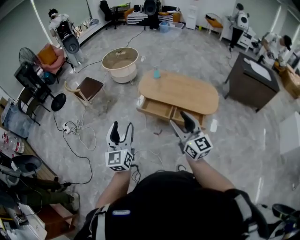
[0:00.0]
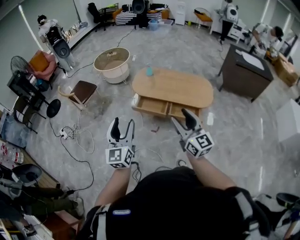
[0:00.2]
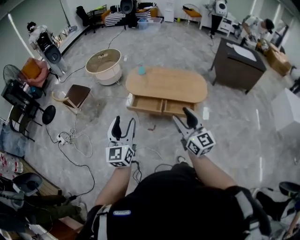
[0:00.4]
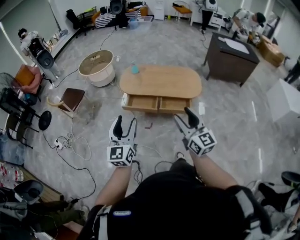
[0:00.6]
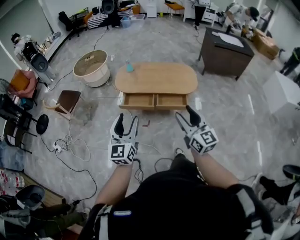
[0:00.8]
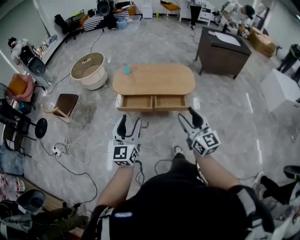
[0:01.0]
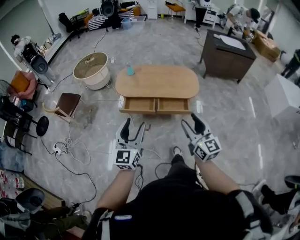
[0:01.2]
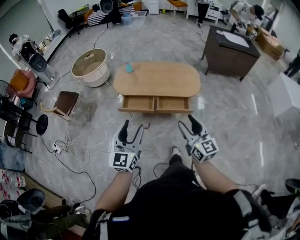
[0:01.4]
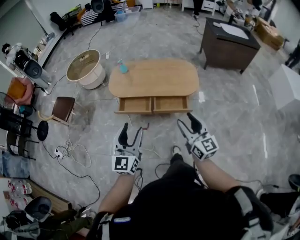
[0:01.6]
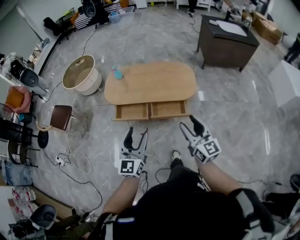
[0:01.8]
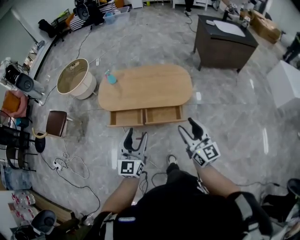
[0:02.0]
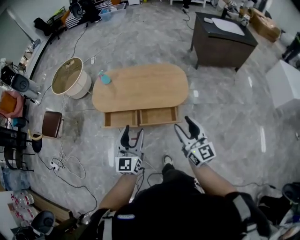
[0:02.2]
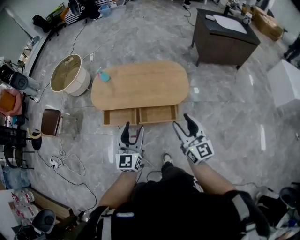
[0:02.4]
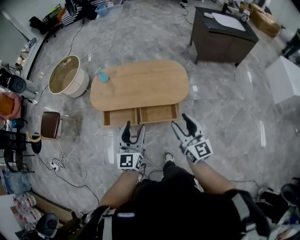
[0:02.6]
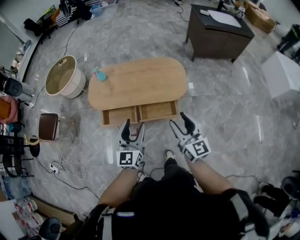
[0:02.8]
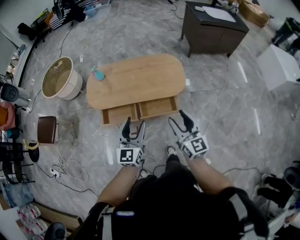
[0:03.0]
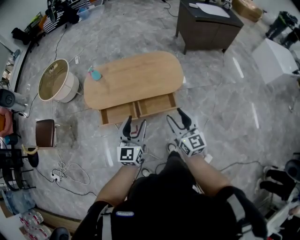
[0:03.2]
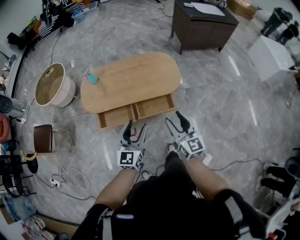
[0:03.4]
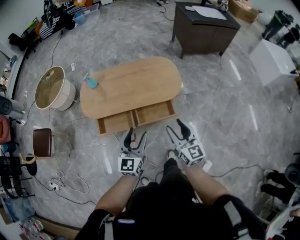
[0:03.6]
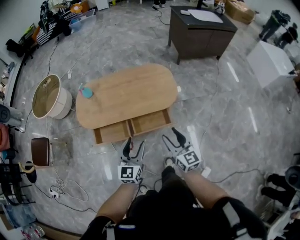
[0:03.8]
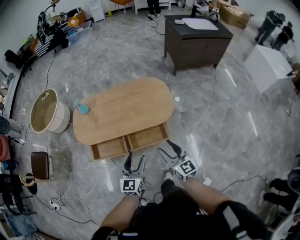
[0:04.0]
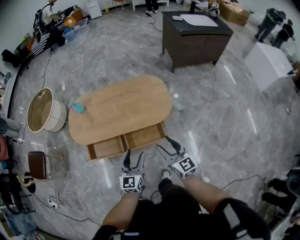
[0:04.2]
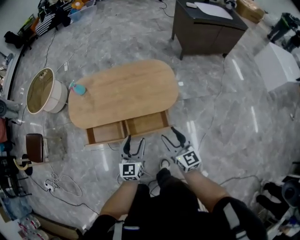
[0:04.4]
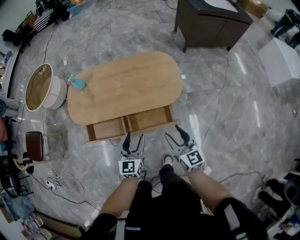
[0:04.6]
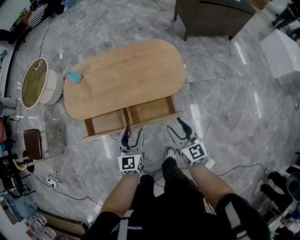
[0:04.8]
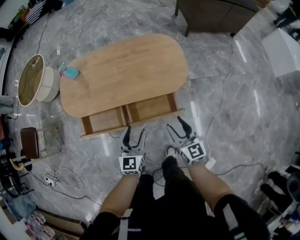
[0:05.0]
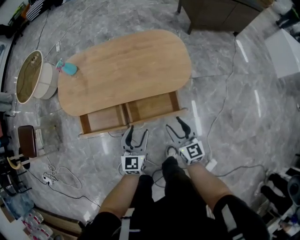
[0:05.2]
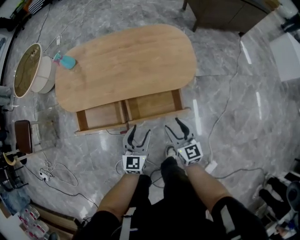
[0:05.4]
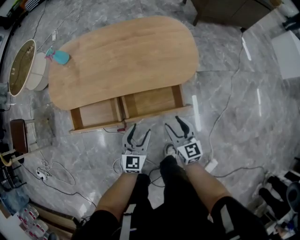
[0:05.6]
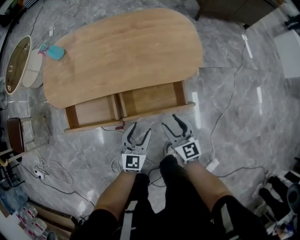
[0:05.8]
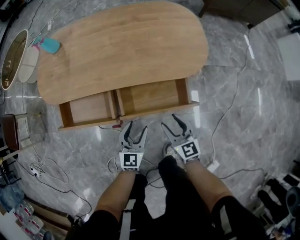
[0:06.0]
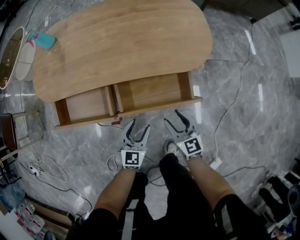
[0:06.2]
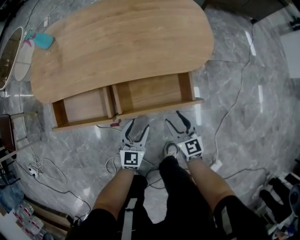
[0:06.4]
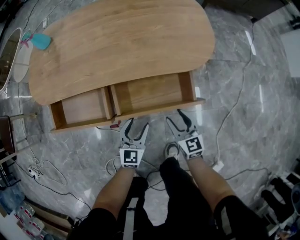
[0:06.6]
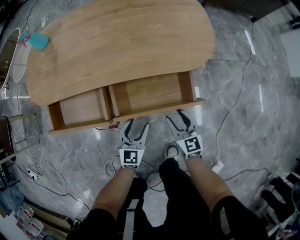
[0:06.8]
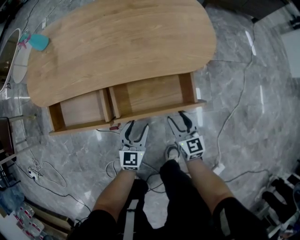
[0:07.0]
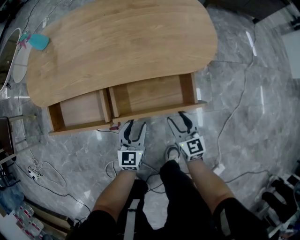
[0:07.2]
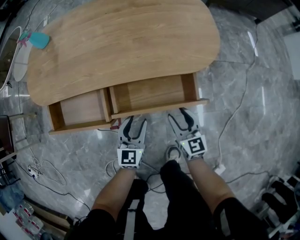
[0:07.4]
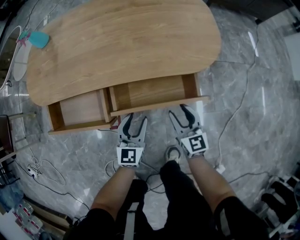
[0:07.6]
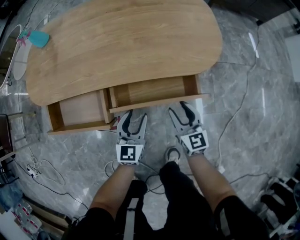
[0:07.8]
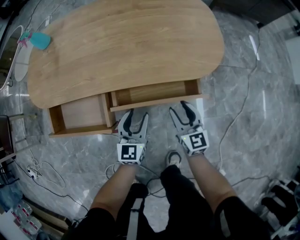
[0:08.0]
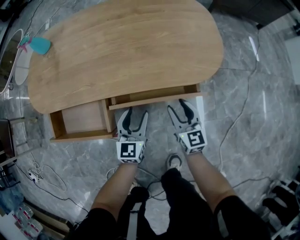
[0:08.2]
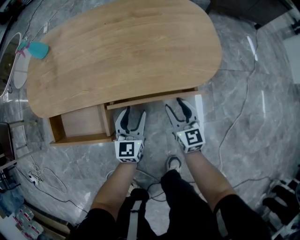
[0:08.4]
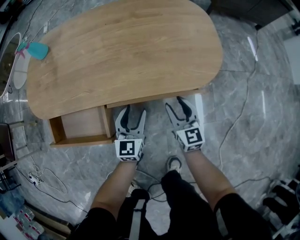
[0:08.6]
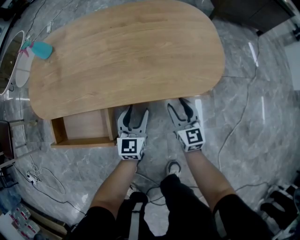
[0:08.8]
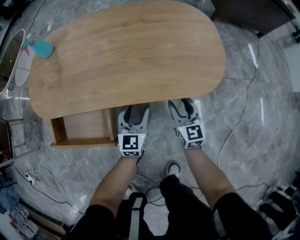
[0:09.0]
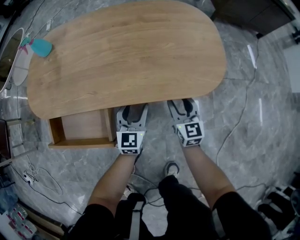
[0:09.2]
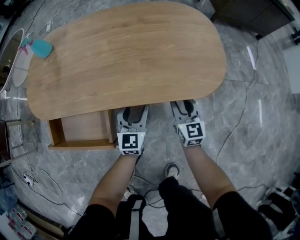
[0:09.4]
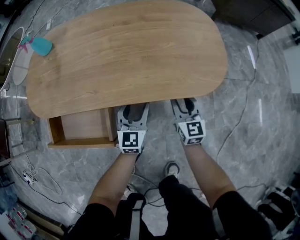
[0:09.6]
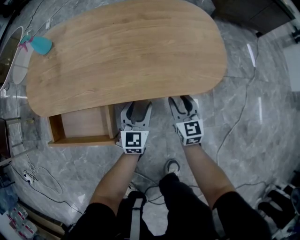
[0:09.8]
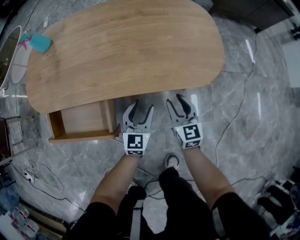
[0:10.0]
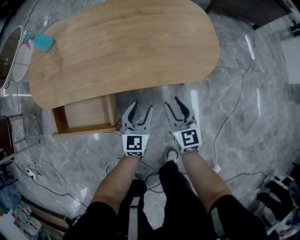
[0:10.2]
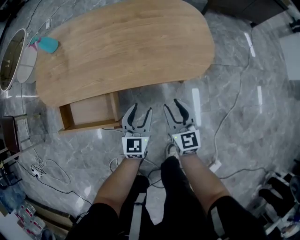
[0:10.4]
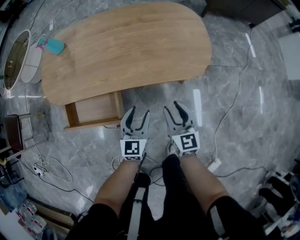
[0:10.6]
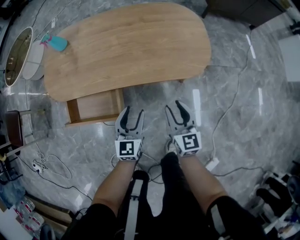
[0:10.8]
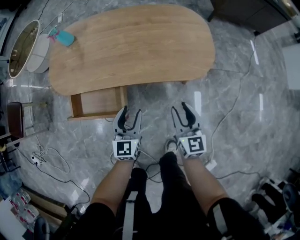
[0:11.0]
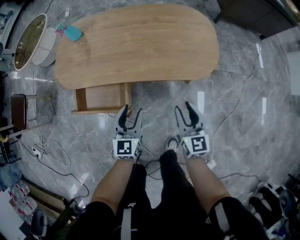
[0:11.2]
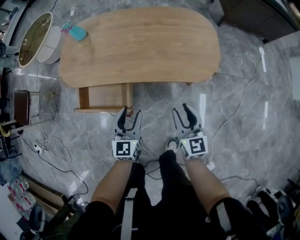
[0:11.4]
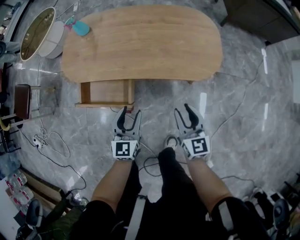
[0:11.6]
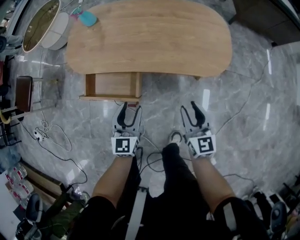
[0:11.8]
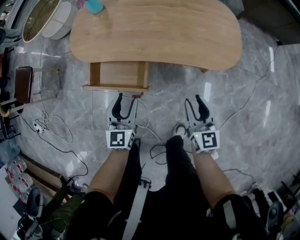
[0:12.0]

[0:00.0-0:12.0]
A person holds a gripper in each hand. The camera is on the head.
0:00.0 to 0:01.6: The right gripper goes some 20 cm to the right and downward, and turns by approximately 20 degrees. Meanwhile the left gripper is displaced to the right and forward by roughly 20 cm, and swivels some 30 degrees.
0:01.6 to 0:03.0: The left gripper moves forward, to the right and downward, roughly 20 cm, while the right gripper travels forward and downward by approximately 15 cm.
0:03.0 to 0:04.4: The left gripper is displaced downward, to the right and forward by about 20 cm; the right gripper travels downward and forward by some 15 cm.
0:04.4 to 0:06.0: Both grippers travel together downward, about 35 cm.
0:06.0 to 0:07.6: The left gripper is displaced downward by approximately 5 cm. Meanwhile the right gripper is displaced downward and forward by approximately 10 cm.
0:07.6 to 0:09.0: Both grippers travel together forward, roughly 15 cm.
0:09.0 to 0:10.4: The right gripper is displaced upward and backward by approximately 15 cm; the left gripper heads backward and upward, covering some 10 cm.
0:10.4 to 0:12.0: The left gripper heads to the left and upward, covering some 20 cm. Meanwhile the right gripper goes some 10 cm upward and backward.

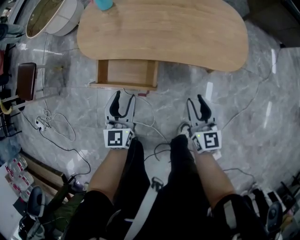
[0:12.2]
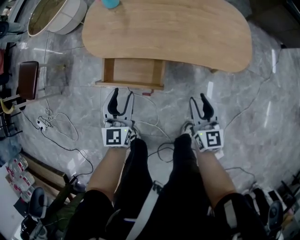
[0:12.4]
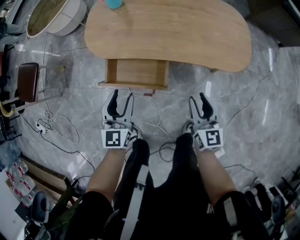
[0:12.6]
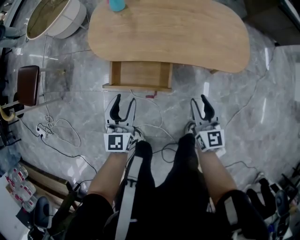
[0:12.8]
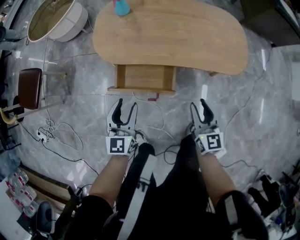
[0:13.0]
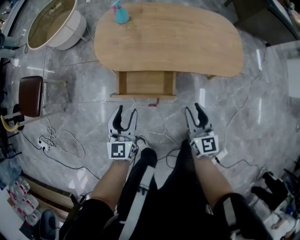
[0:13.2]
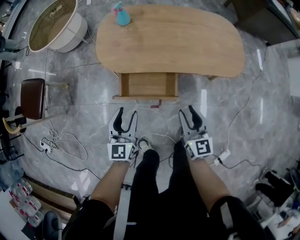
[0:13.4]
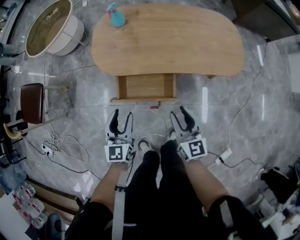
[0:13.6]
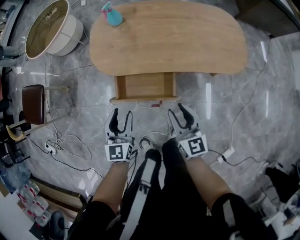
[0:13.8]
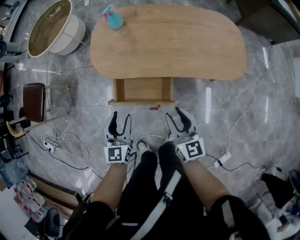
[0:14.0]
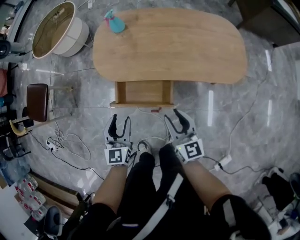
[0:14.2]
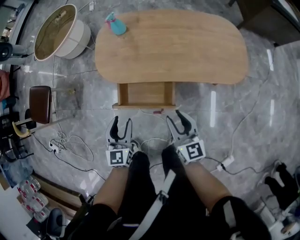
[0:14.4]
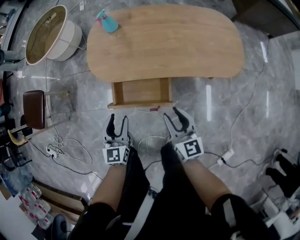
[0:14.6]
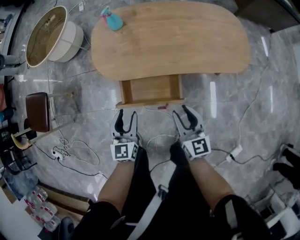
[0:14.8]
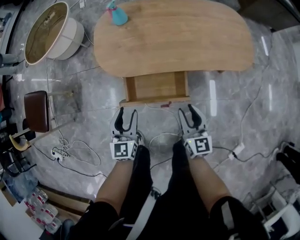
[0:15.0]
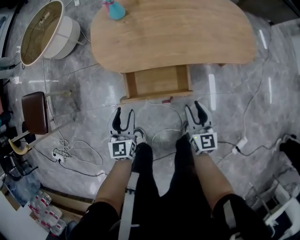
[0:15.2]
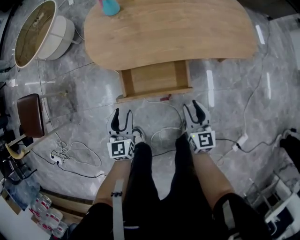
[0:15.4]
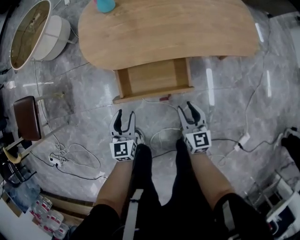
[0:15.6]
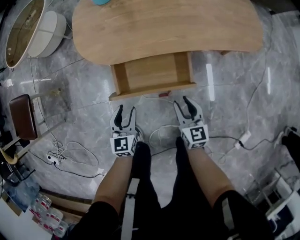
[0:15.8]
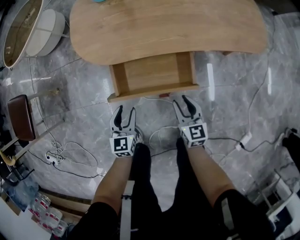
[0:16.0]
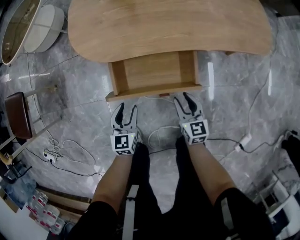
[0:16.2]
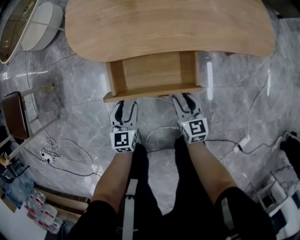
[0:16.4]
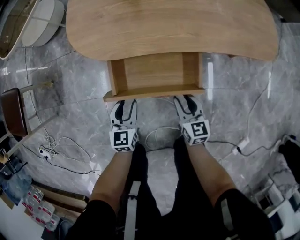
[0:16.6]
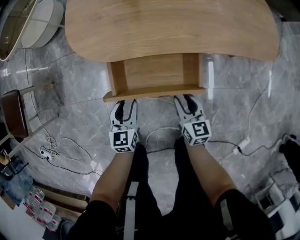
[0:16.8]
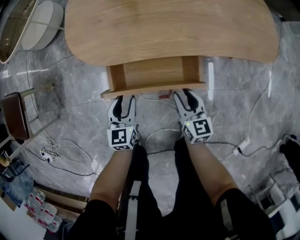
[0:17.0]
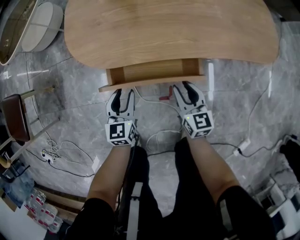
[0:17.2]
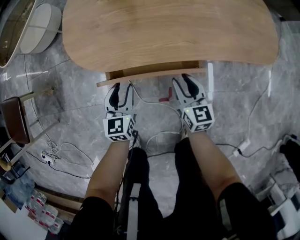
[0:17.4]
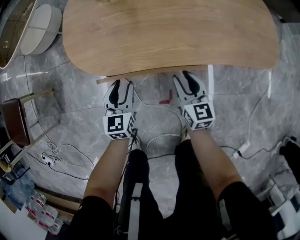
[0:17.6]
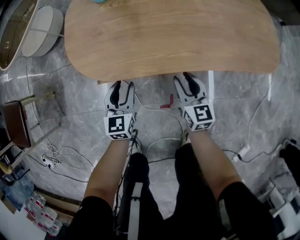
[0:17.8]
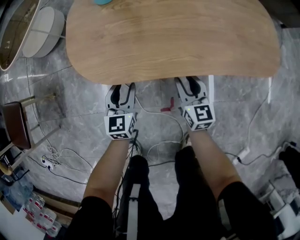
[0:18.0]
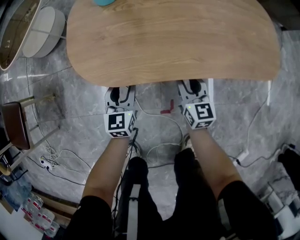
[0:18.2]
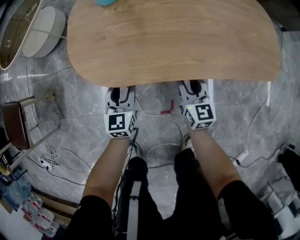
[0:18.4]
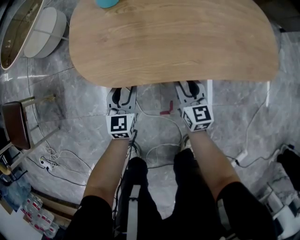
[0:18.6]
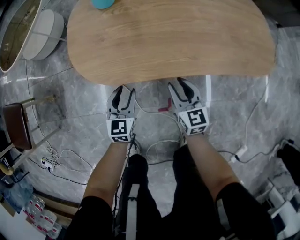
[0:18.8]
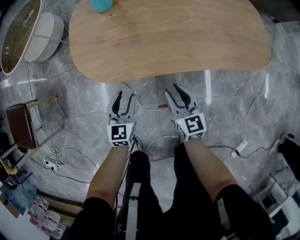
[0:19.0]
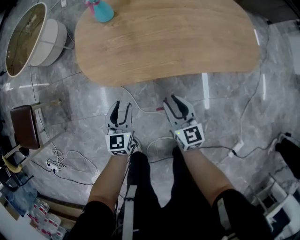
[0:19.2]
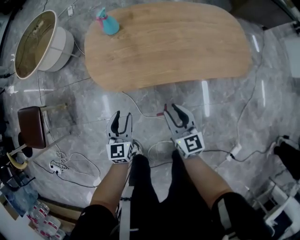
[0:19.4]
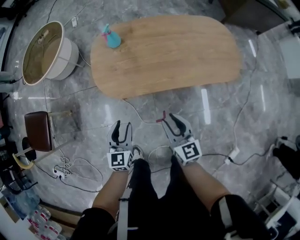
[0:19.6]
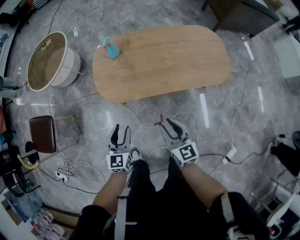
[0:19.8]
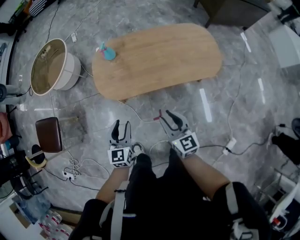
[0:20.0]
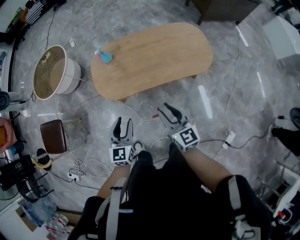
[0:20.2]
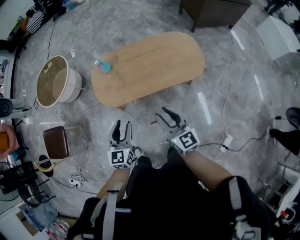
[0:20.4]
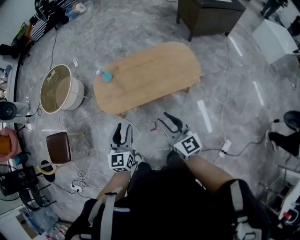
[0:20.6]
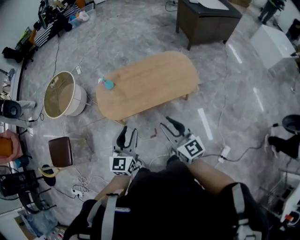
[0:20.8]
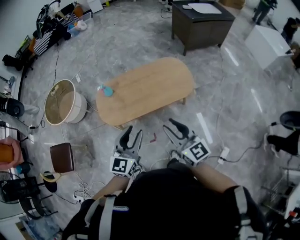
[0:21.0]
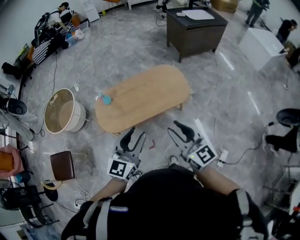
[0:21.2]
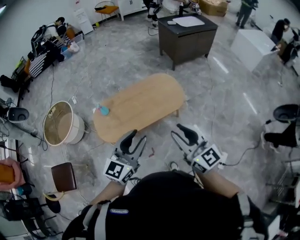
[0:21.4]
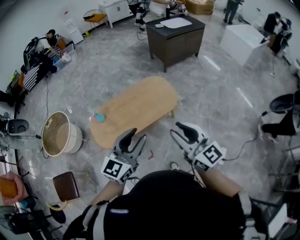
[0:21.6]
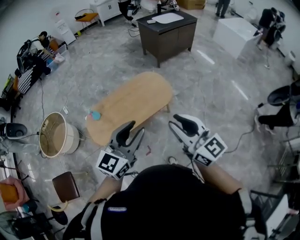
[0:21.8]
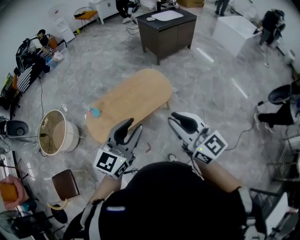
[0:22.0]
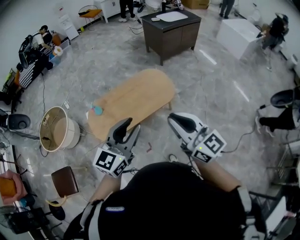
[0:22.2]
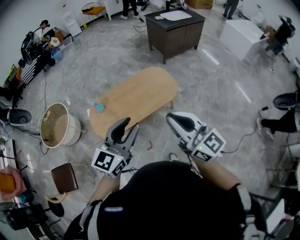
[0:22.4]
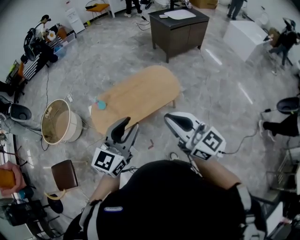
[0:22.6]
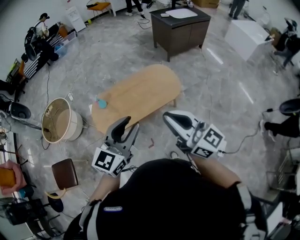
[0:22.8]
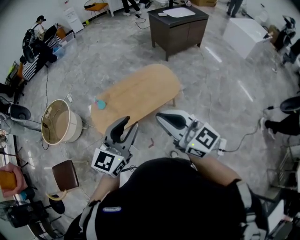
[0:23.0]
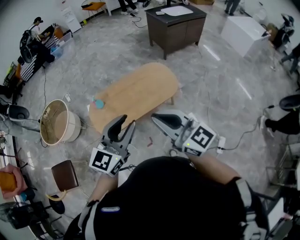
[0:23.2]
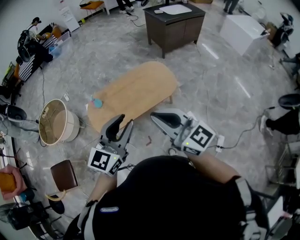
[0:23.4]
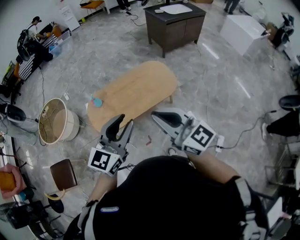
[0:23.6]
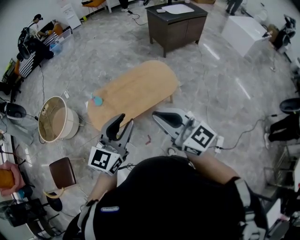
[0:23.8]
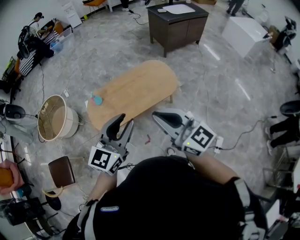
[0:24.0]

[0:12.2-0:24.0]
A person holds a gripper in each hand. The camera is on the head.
0:12.2 to 0:13.6: The two grippers go some 15 cm to the left.
0:13.6 to 0:15.2: The left gripper travels downward and to the left by some 10 cm. The right gripper travels downward by some 10 cm.
0:15.2 to 0:16.6: Both grippers travel together downward, roughly 20 cm.
0:16.6 to 0:18.2: The grippers both shift forward by some 20 cm.
0:18.2 to 0:19.6: The two grippers go approximately 25 cm upward and backward.
0:19.6 to 0:21.0: The left gripper goes roughly 40 cm upward and to the right, and turns by roughly 30 degrees. Meanwhile the right gripper shifts some 40 cm upward.
0:21.0 to 0:22.6: The two grippers go roughly 15 cm upward. The right gripper closes up, while the left gripper changes its angle by some 20 degrees.
0:22.6 to 0:24.0: The grippers stay close to where they were, moving slightly.
